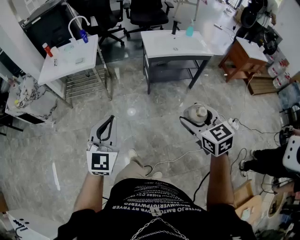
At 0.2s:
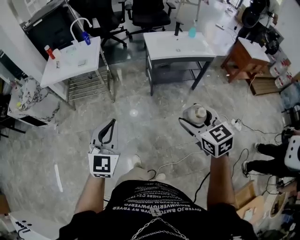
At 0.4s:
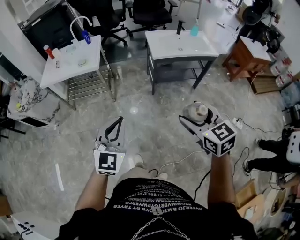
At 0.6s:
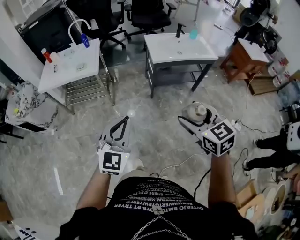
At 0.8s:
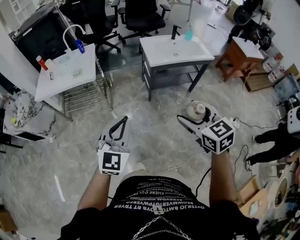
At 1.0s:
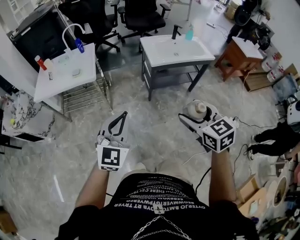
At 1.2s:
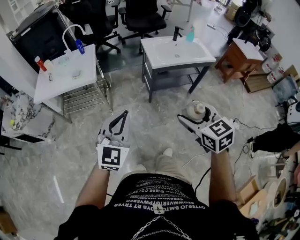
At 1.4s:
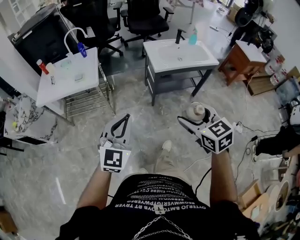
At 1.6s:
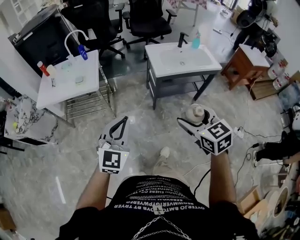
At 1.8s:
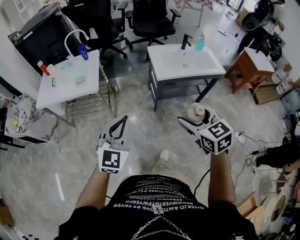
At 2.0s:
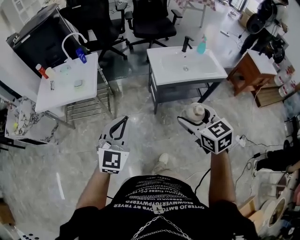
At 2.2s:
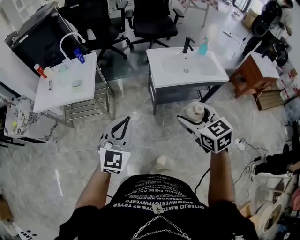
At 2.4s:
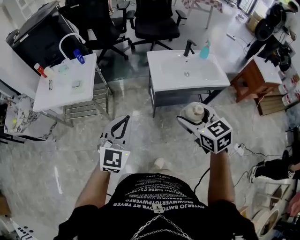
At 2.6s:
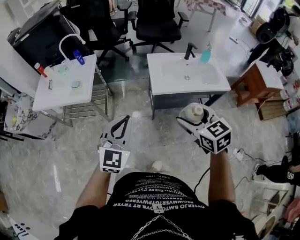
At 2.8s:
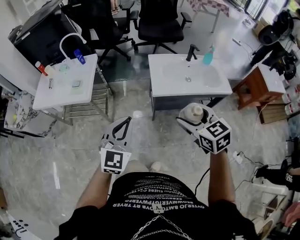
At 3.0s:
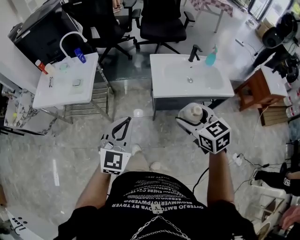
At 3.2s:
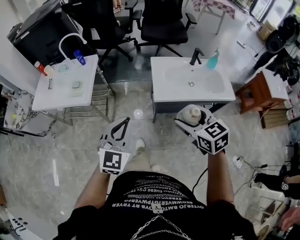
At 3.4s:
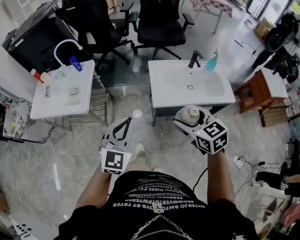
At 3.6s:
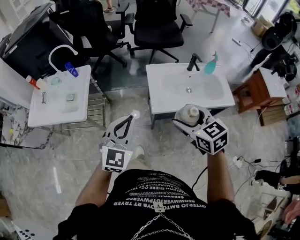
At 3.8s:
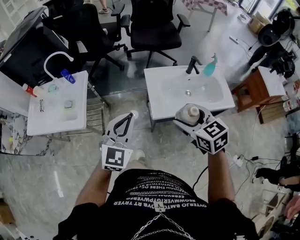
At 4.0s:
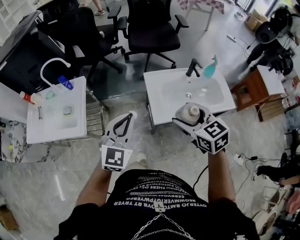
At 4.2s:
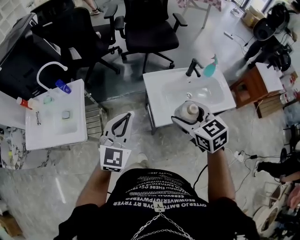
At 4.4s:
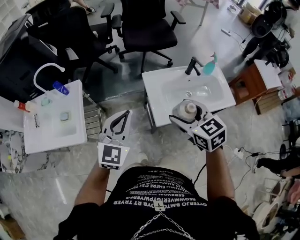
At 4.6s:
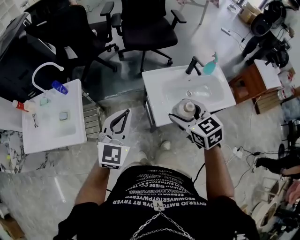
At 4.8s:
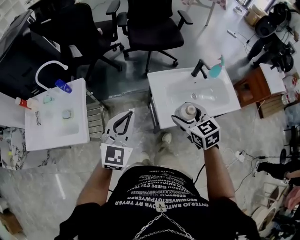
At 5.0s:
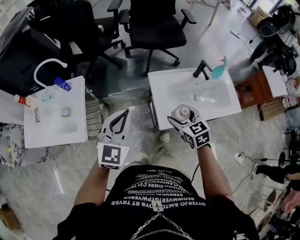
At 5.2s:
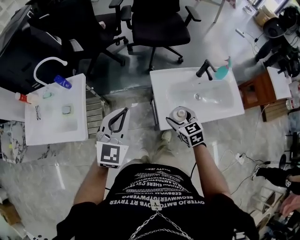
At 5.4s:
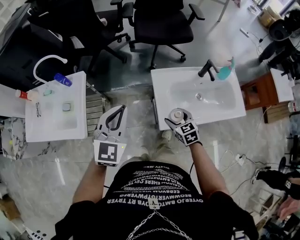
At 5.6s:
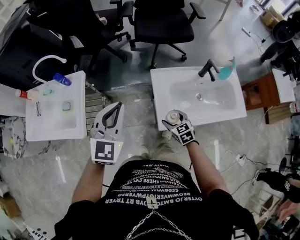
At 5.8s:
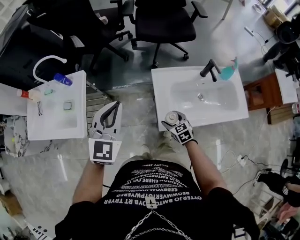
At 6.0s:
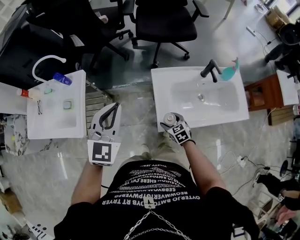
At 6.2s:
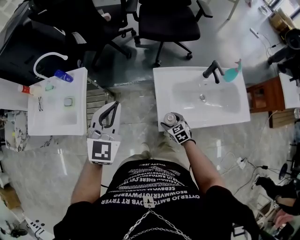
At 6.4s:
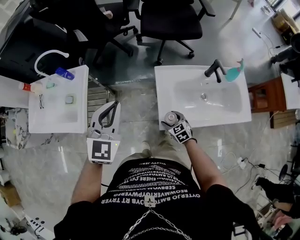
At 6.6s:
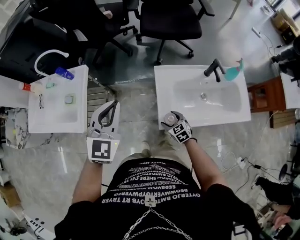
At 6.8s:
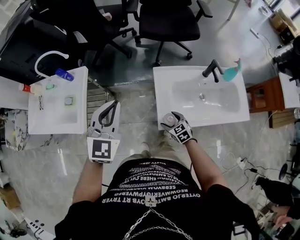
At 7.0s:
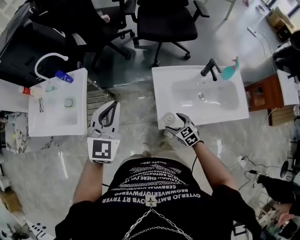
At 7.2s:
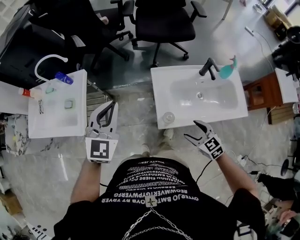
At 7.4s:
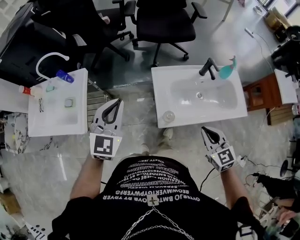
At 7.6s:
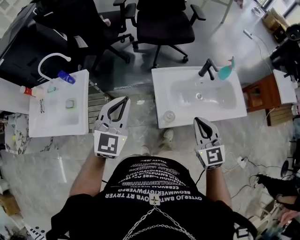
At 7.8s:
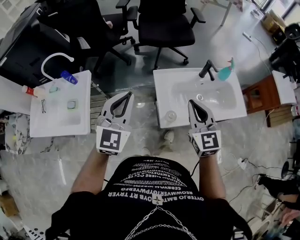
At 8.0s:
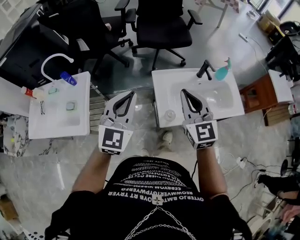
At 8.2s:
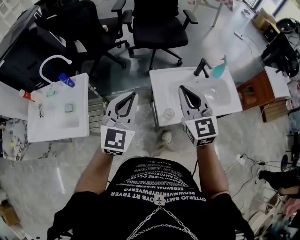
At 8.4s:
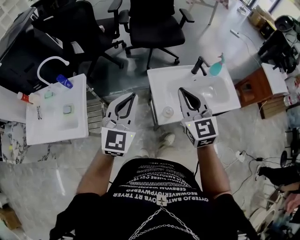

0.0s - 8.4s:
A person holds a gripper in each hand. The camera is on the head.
0.0s - 1.4s: The right gripper goes some 20 cm forward and to the left. Meanwhile the left gripper is displaced forward by about 20 cm.
1.4s - 2.8s: The two grippers go some 30 cm forward and to the right.
2.8s - 4.2s: Both grippers travel together forward, about 30 cm.
4.2s - 5.6s: The left gripper goes roughly 10 cm forward. Meanwhile the right gripper shifts approximately 30 cm downward.
7.0s - 8.4s: The left gripper is displaced backward by some 5 cm. Meanwhile the right gripper is displaced upward by about 35 cm, tilts its fingers roughly 30 degrees upward, and closes.

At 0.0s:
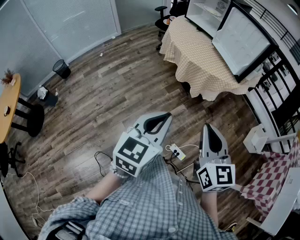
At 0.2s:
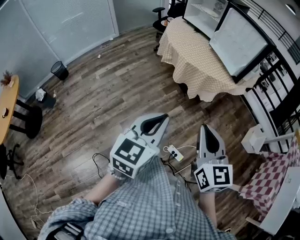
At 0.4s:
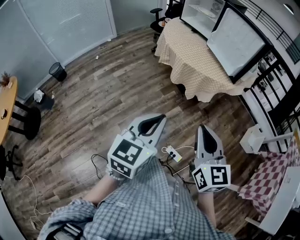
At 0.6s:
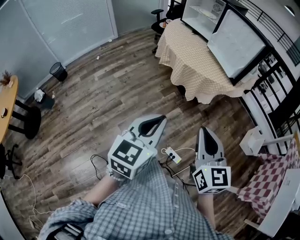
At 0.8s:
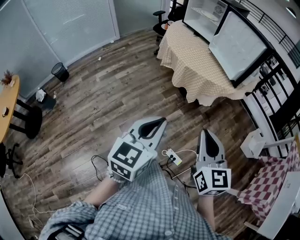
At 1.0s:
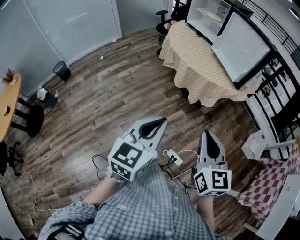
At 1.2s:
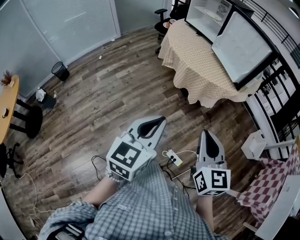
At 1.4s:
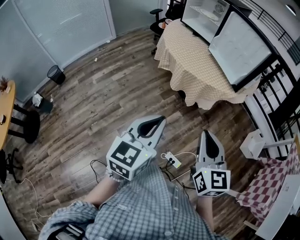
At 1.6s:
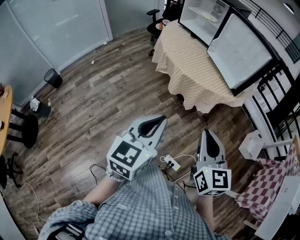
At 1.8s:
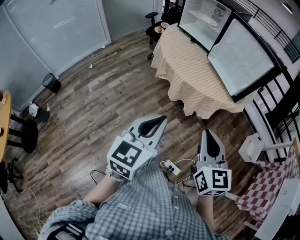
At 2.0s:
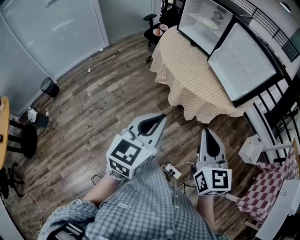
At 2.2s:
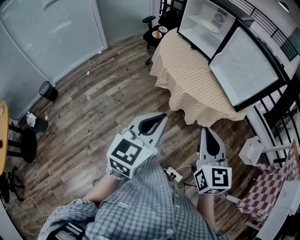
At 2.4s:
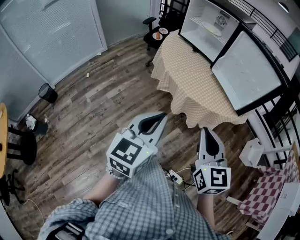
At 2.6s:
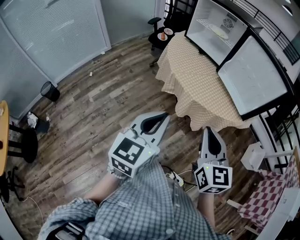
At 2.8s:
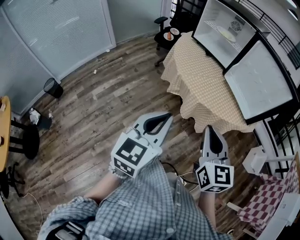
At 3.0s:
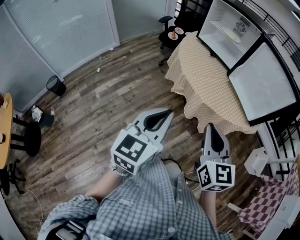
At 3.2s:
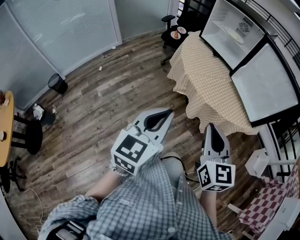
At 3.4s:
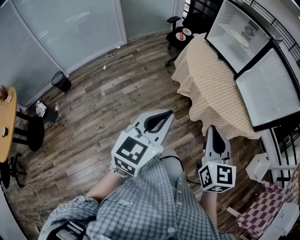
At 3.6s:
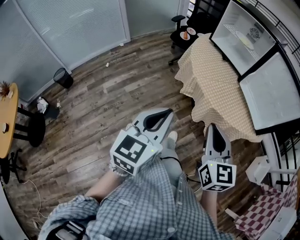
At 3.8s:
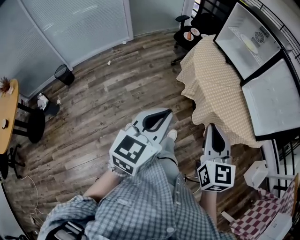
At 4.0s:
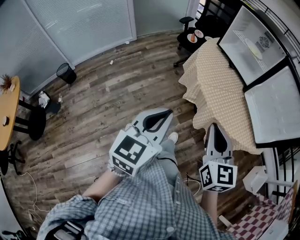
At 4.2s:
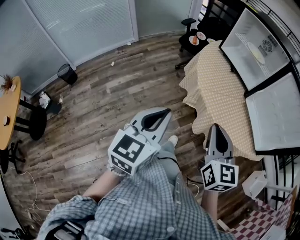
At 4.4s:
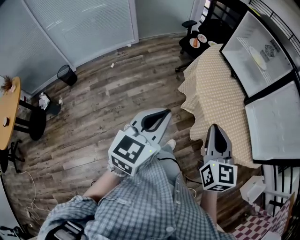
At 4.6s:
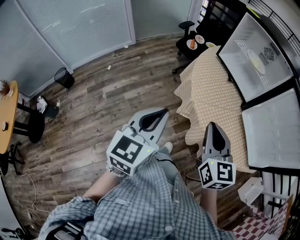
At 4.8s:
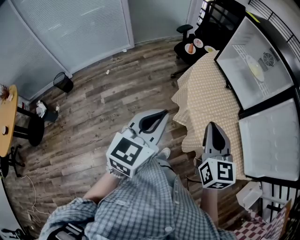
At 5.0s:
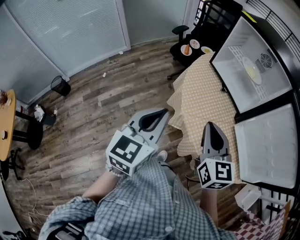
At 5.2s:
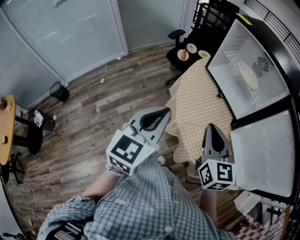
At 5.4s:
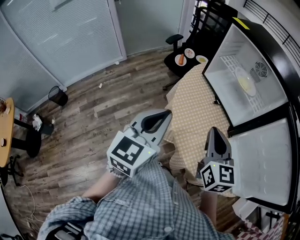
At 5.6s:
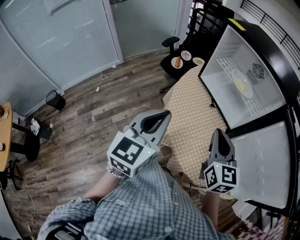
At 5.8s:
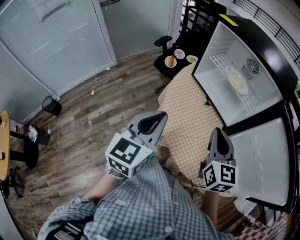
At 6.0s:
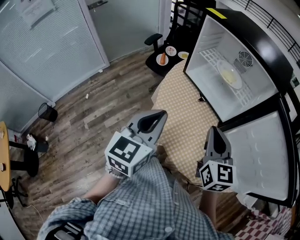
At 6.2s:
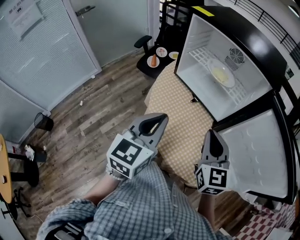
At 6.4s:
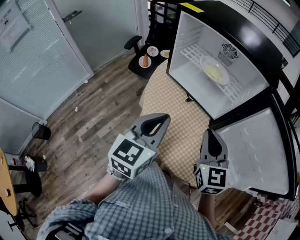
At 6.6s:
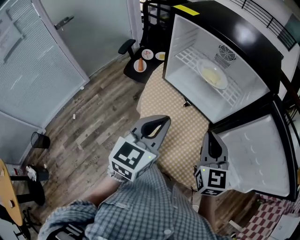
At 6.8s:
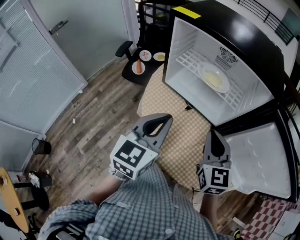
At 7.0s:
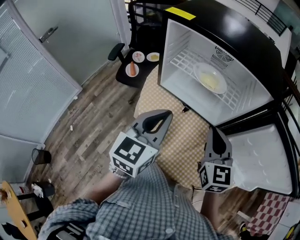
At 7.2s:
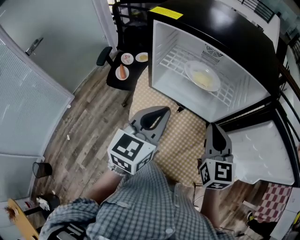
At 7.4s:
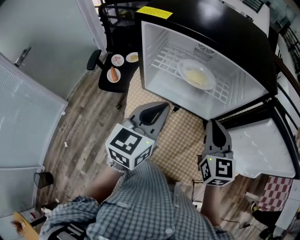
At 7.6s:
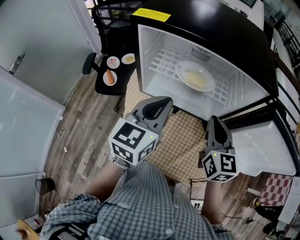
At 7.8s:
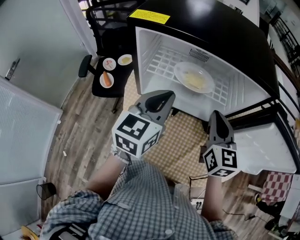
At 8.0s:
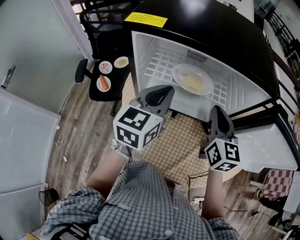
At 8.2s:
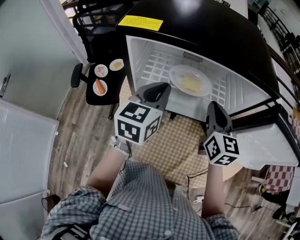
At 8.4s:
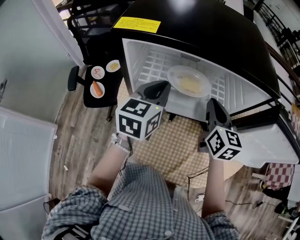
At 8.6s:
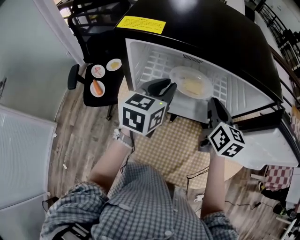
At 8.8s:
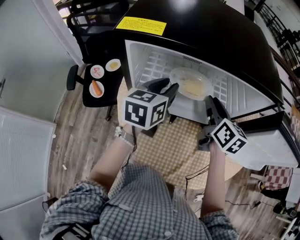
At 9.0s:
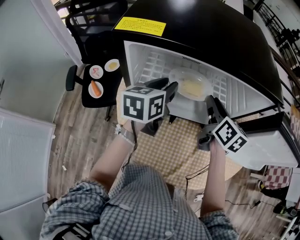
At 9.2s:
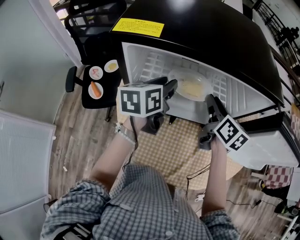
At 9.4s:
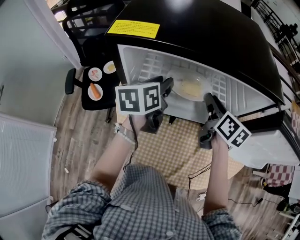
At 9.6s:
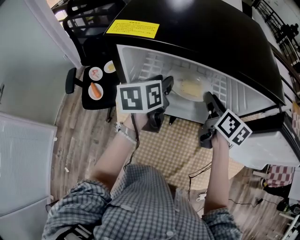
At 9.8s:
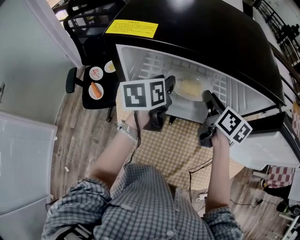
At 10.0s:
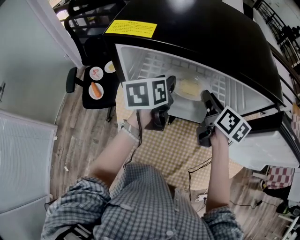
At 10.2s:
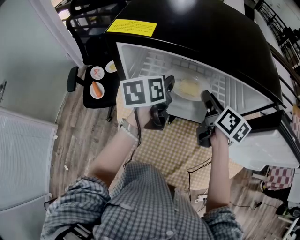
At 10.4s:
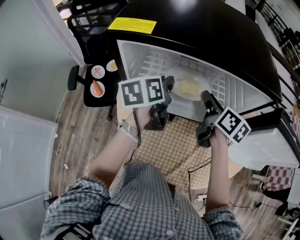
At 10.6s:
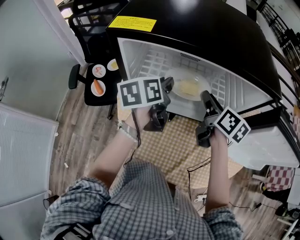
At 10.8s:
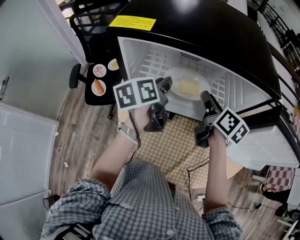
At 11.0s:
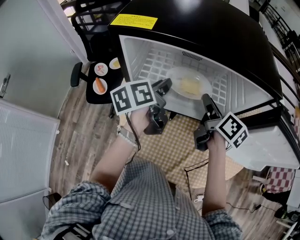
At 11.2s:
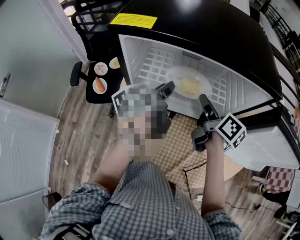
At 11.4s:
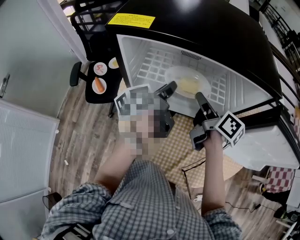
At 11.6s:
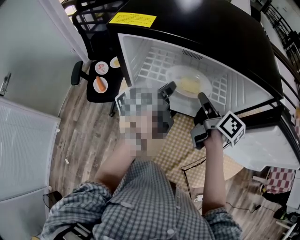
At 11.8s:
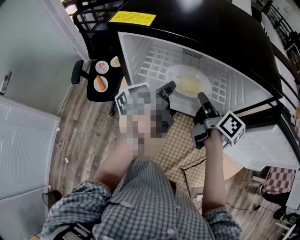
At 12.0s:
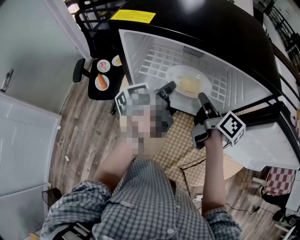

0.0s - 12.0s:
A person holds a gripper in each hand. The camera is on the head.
0.0s - 1.6s: Both grippers move forward, some 10 cm.
1.6s - 3.0s: The right gripper moves to the left and forward, some 25 cm, while the left gripper shifts some 25 cm forward and to the left.
3.0s - 4.4s: Both grippers travel together forward, roughly 15 cm.
4.4s - 6.0s: The right gripper travels forward and to the right by about 30 cm; the left gripper is displaced forward by some 25 cm.
6.0s - 7.6s: The left gripper moves roughly 25 cm, and swivels about 30 degrees, while the right gripper ends up roughly 15 cm from where it was, and changes its angle by approximately 30 degrees.
7.6s - 9.0s: The grippers both shift forward by approximately 15 cm. The right gripper rotates roughly 30 degrees, and opens, while the left gripper changes its angle by some 20 degrees, and opens its fingers.
9.0s - 10.4s: The grippers make only small movements.
10.4s - 12.0s: The left gripper changes its angle by approximately 30 degrees. The right gripper changes its angle by roughly 20 degrees.

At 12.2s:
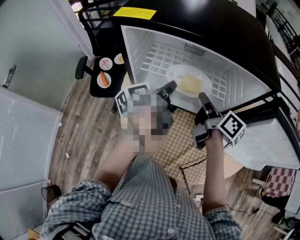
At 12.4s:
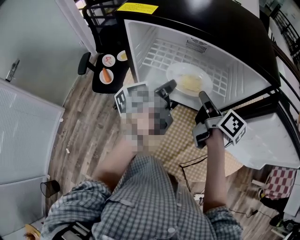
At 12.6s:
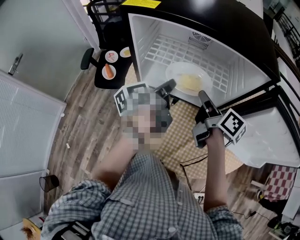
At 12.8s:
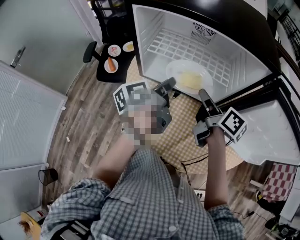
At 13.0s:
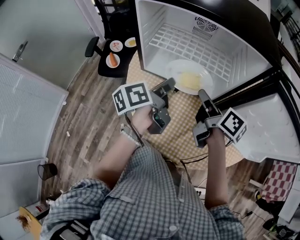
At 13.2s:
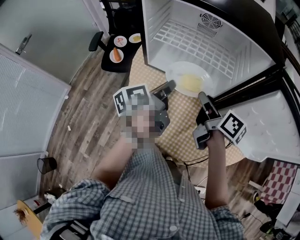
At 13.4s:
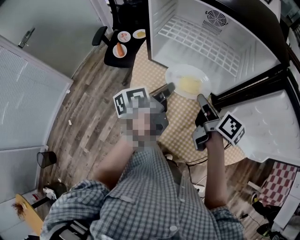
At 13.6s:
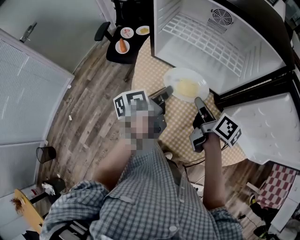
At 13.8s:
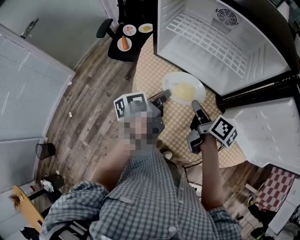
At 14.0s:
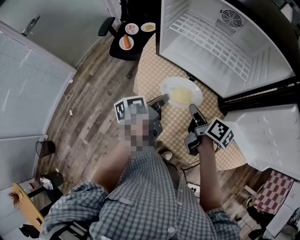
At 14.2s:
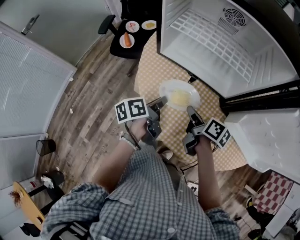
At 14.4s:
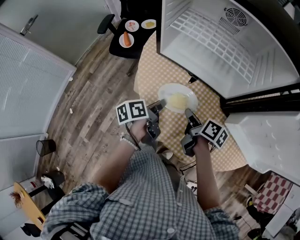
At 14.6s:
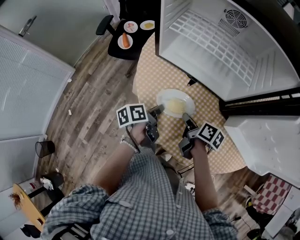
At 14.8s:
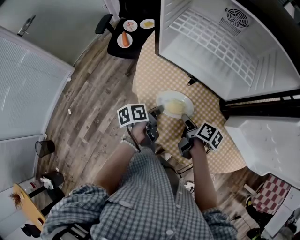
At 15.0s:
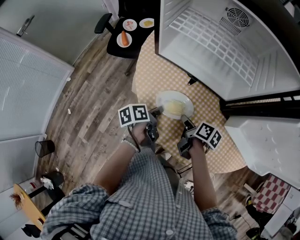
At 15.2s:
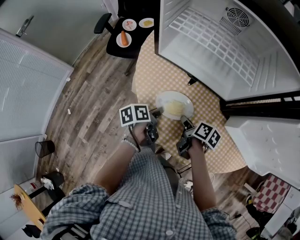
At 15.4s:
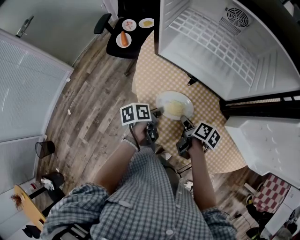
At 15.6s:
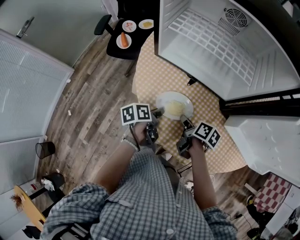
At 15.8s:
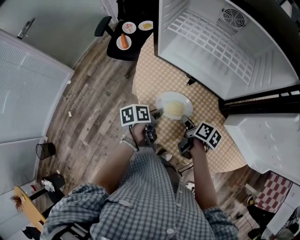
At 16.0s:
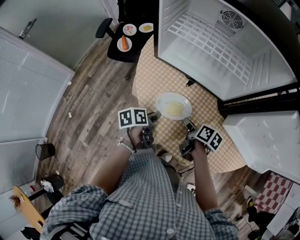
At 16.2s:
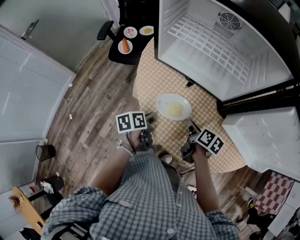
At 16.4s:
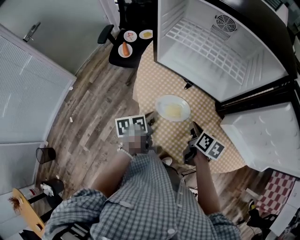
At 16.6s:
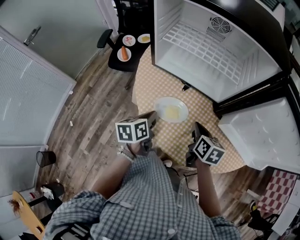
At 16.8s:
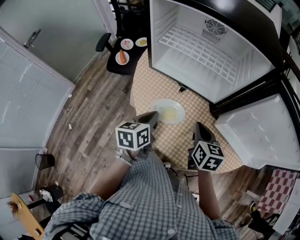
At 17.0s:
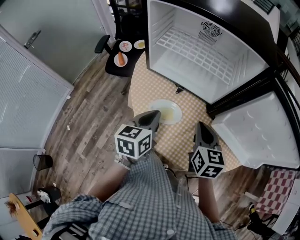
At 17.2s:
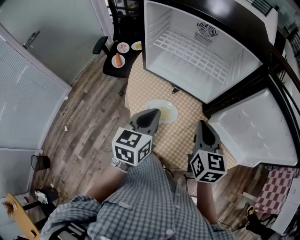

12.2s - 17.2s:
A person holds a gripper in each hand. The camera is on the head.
12.2s - 13.8s: The two grippers go some 20 cm backward and downward. The right gripper rotates some 20 degrees.
13.8s - 15.6s: Both grippers move downward, roughly 15 cm. The left gripper changes its angle by approximately 20 degrees.
15.6s - 17.2s: The two grippers go roughly 25 cm upward. The right gripper rotates around the line of its fingers by some 50 degrees, counterclockwise from behind. Meanwhile the left gripper twists approximately 50 degrees clockwise, seen from behind.
